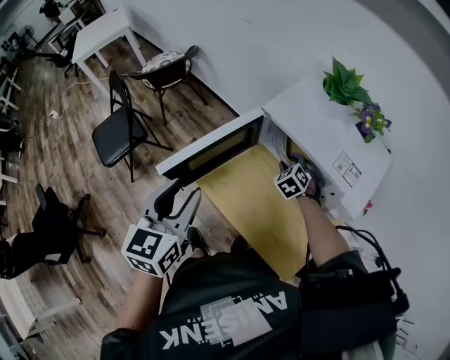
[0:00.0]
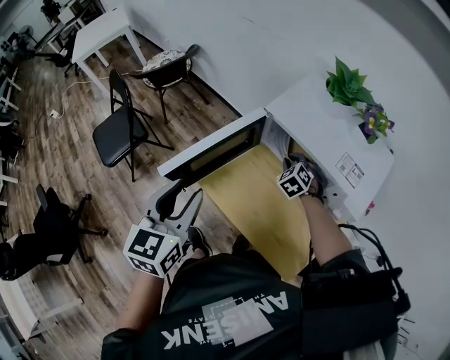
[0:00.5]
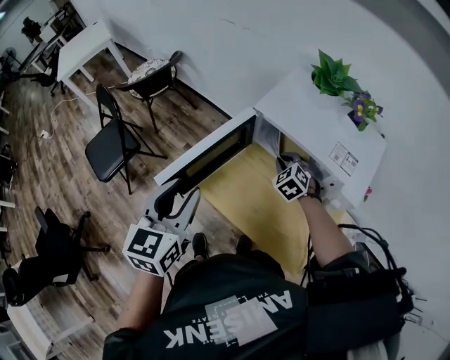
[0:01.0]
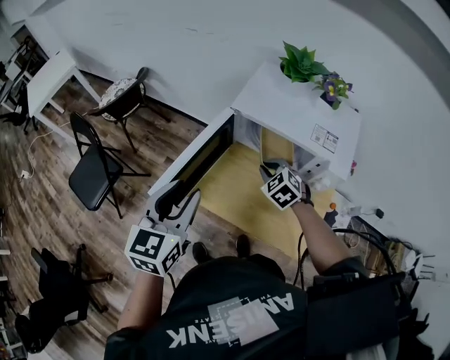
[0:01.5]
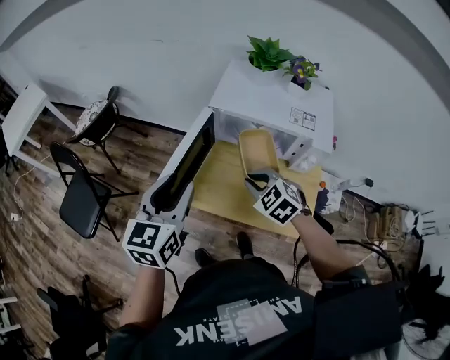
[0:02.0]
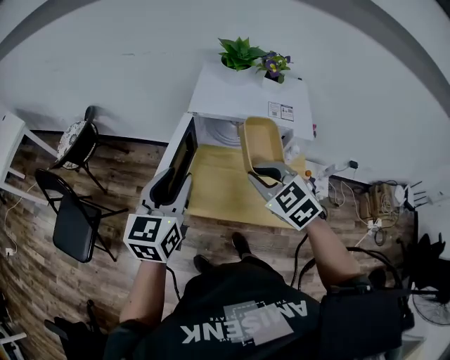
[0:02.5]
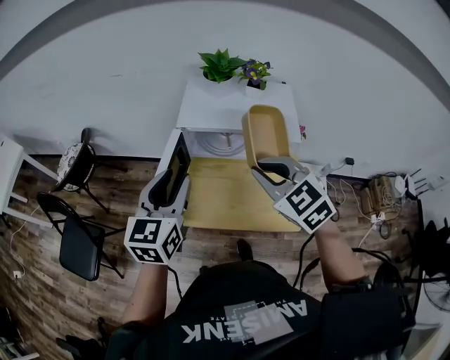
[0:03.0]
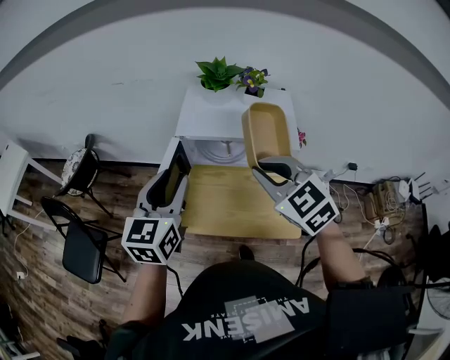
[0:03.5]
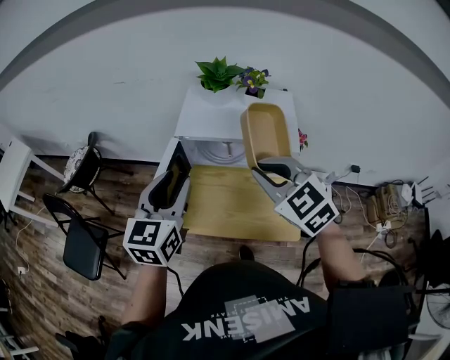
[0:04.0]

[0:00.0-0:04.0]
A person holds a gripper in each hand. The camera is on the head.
0:00.0 to 0:02.0: The right gripper travels backward, upward and to the left by some 25 cm, and closes its fingers. The left gripper swivels roughly 30 degrees.
0:02.0 to 0:04.0: The left gripper shifts roughly 10 cm to the right and upward. The right gripper is displaced upward by approximately 20 cm, and swivels roughly 20 degrees.

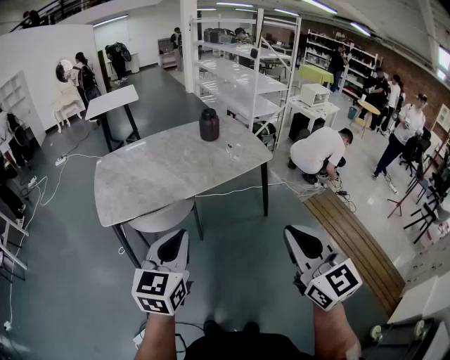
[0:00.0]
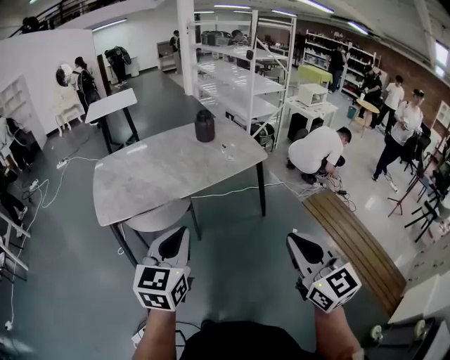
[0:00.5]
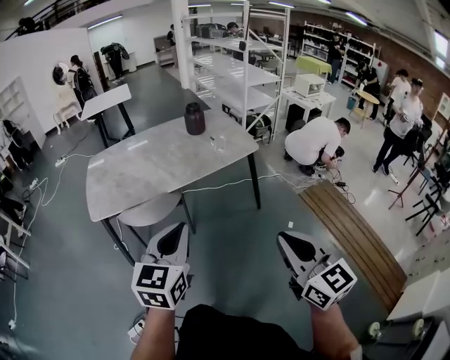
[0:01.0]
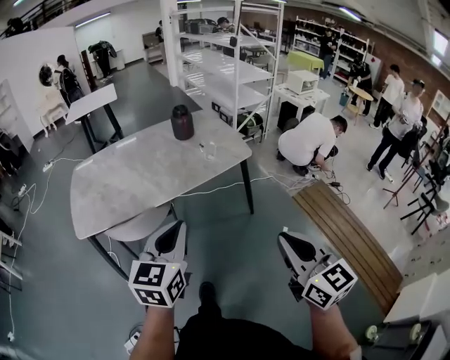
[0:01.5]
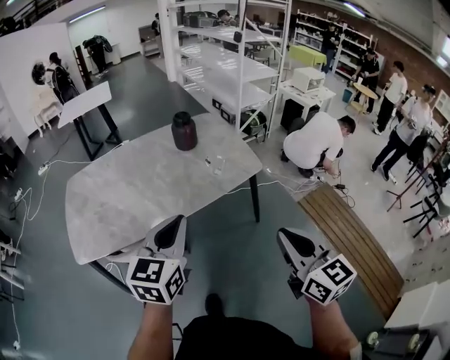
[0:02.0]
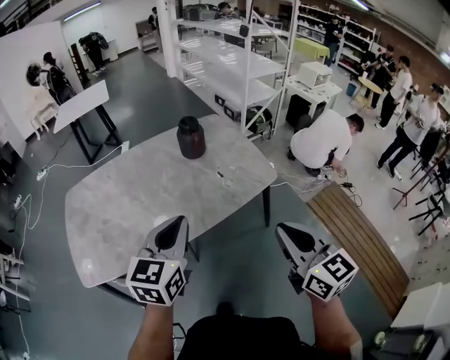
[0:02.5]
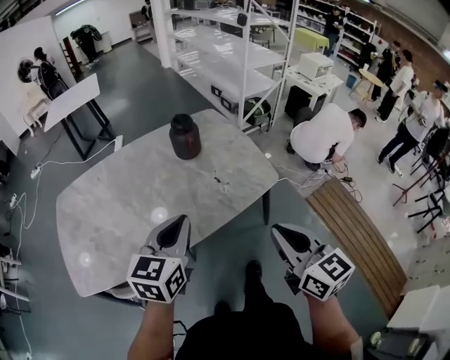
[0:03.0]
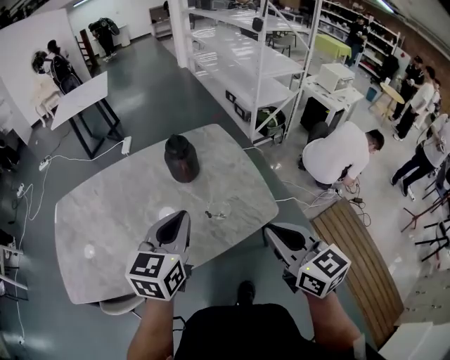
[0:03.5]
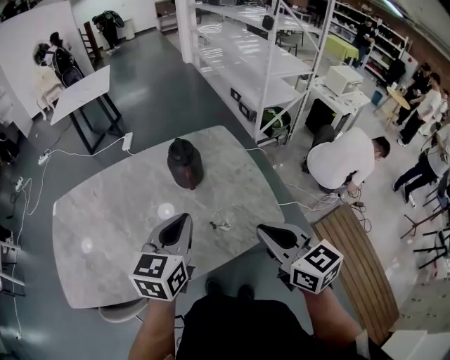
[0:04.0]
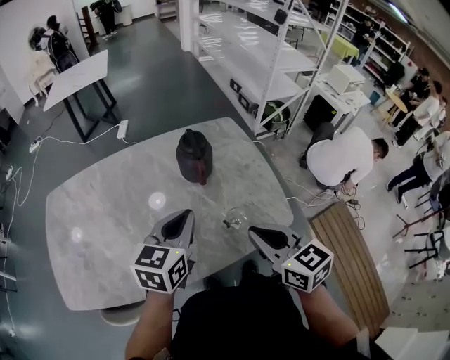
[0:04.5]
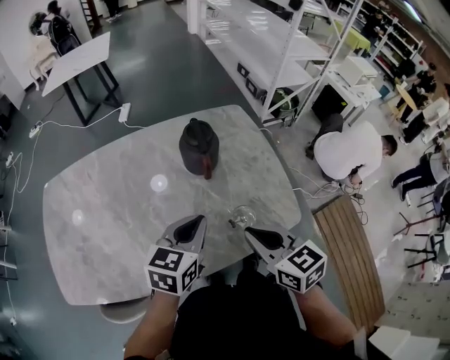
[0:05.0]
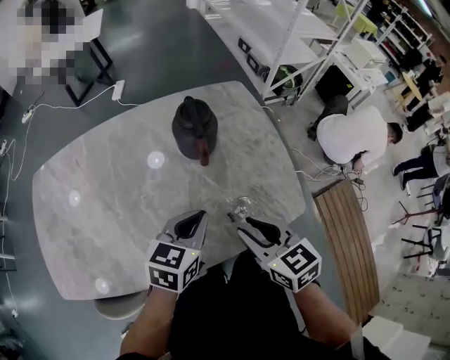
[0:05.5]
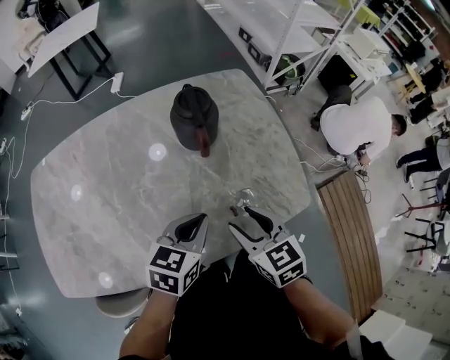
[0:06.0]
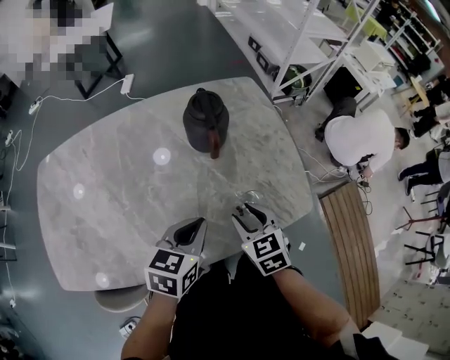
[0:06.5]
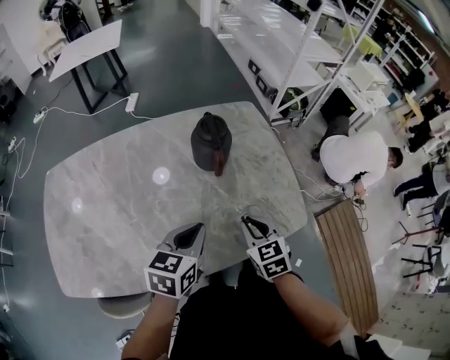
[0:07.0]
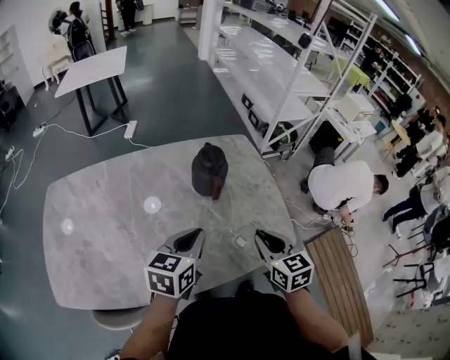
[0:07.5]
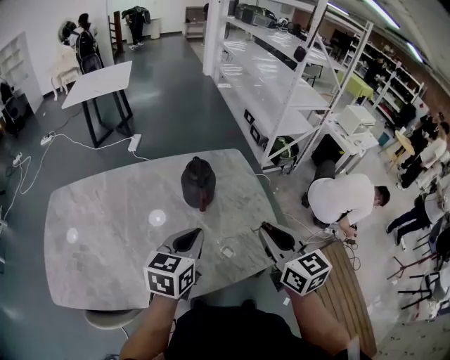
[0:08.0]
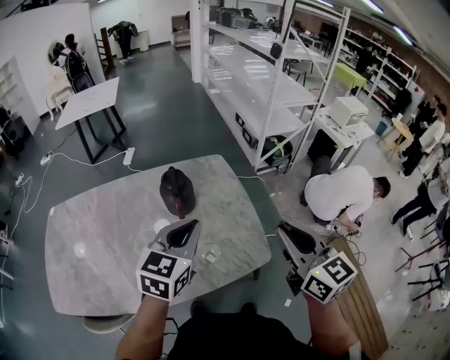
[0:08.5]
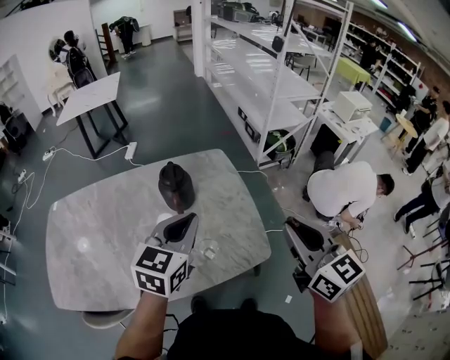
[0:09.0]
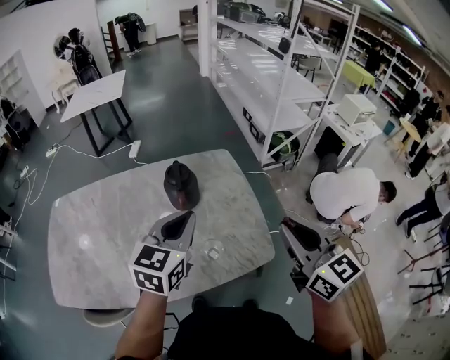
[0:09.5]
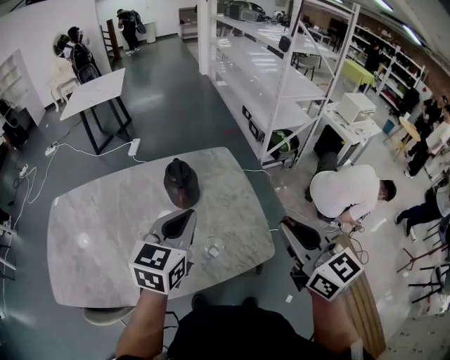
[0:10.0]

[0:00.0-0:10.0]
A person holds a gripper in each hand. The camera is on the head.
0:00.0 to 0:02.0: The grippers both shift forward and to the right by some 25 cm.
0:02.0 to 0:04.0: The two grippers go roughly 35 cm forward.
0:04.0 to 0:06.0: The left gripper travels downward by some 20 cm, and changes its angle by approximately 20 degrees; the right gripper moves downward and to the left, roughly 20 cm, and opens.
0:06.0 to 0:08.0: The right gripper goes approximately 20 cm upward and to the right, rotates about 20 degrees, and closes its fingers; the left gripper is displaced upward by about 10 cm.
0:08.0 to 0:10.0: The right gripper shifts approximately 15 cm to the right and upward. Meanwhile the left gripper goes about 10 cm upward and to the right.

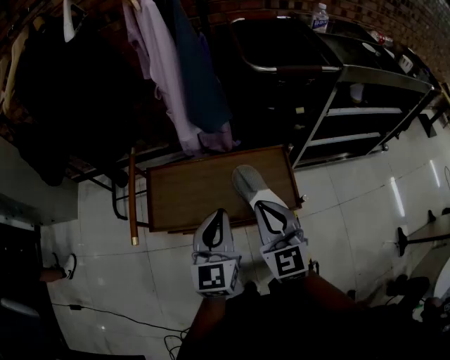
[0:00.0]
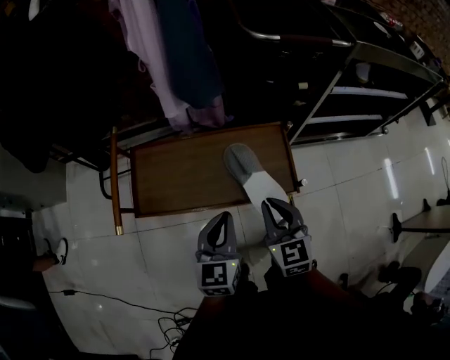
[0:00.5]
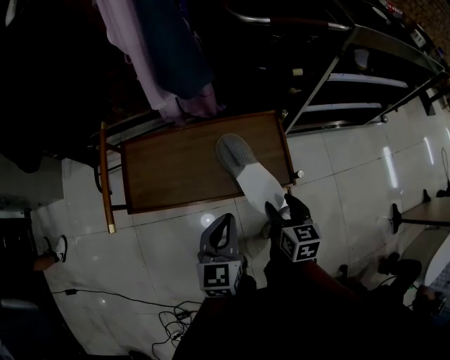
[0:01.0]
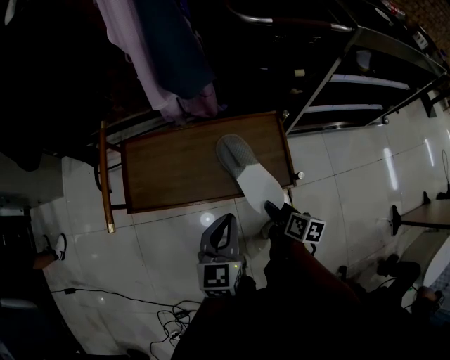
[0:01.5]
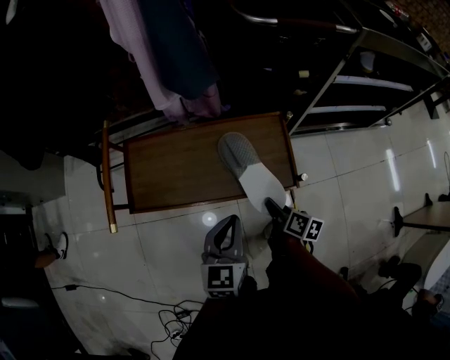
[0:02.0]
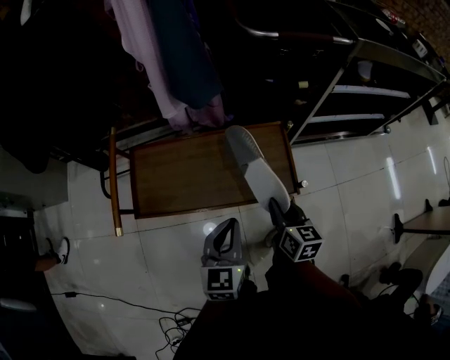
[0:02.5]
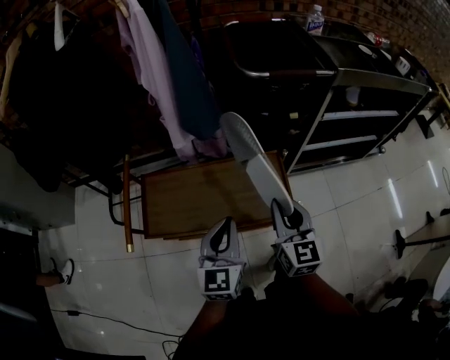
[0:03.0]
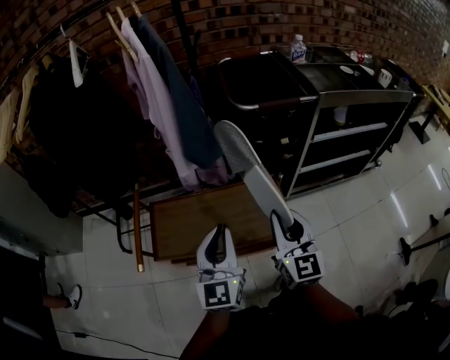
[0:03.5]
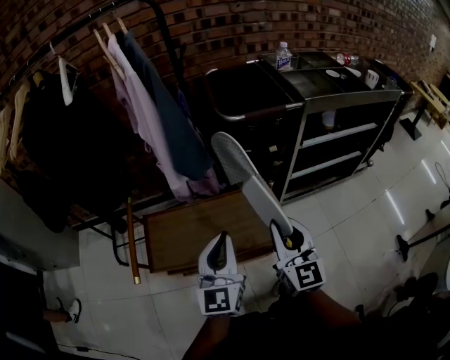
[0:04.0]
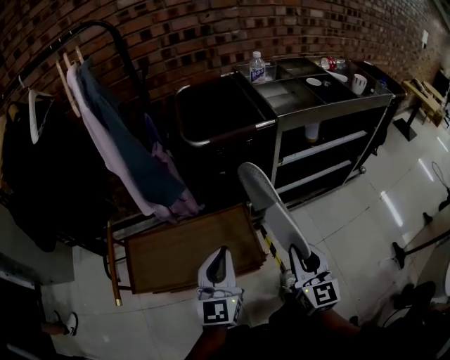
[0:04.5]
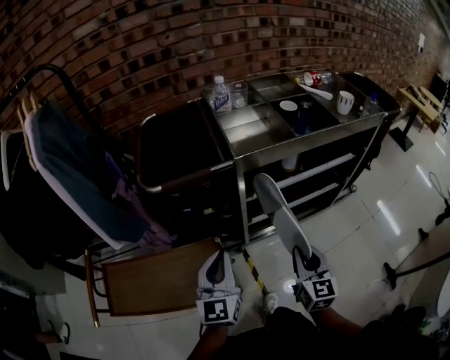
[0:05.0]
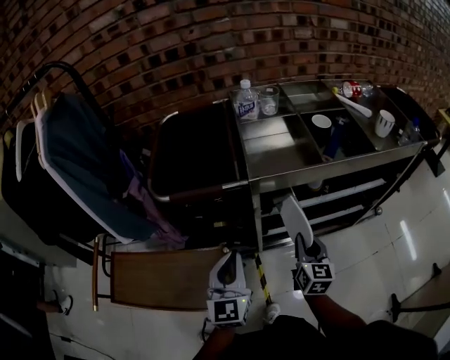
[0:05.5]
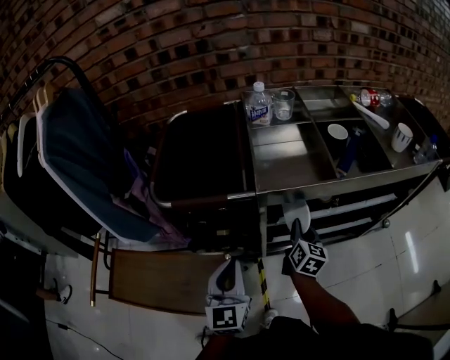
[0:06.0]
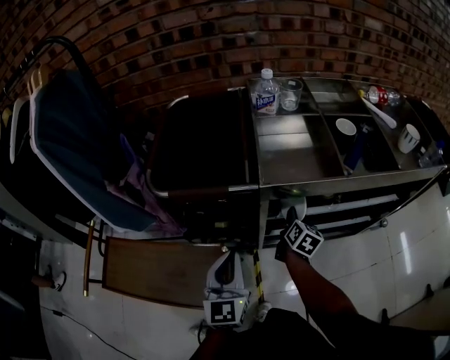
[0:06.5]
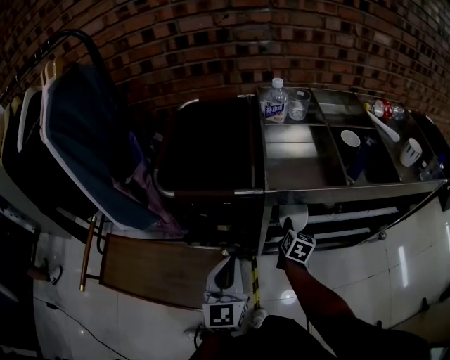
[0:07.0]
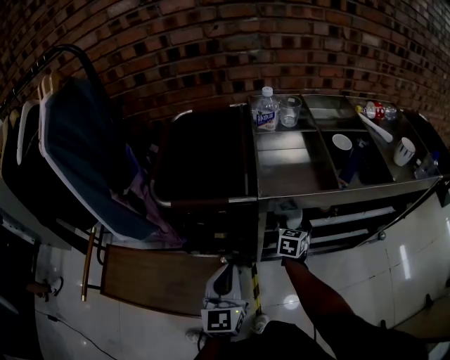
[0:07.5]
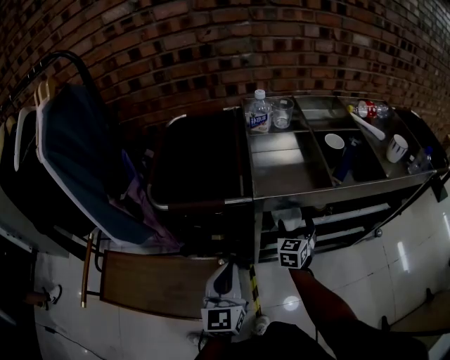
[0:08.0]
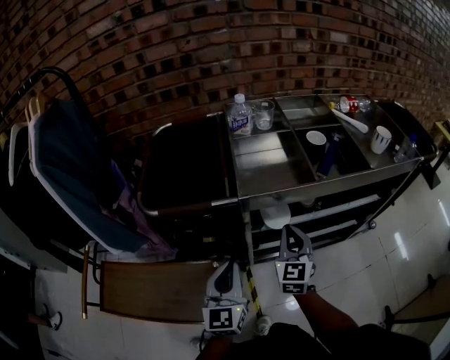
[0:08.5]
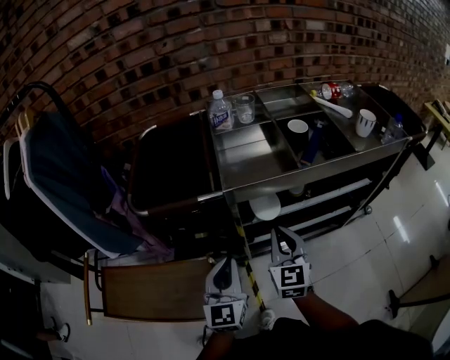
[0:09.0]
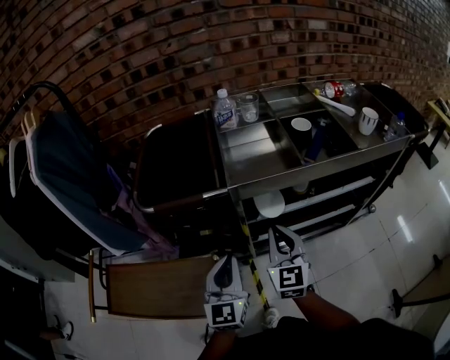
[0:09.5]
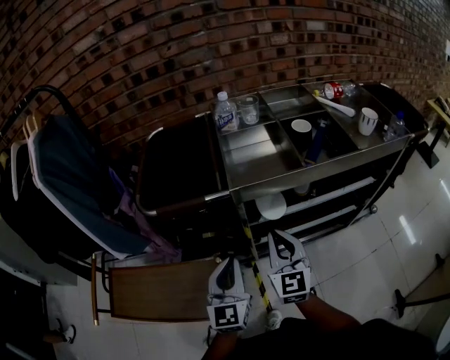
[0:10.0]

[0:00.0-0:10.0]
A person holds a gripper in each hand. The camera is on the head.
0:00.0 to 0:02.0: The left gripper goes some 15 cm downward and to the right, while the right gripper is displaced downward by some 30 cm, rotates around the line of its fingers by approximately 70 degrees, clockwise from behind, and opens, then closes again.
0:02.0 to 0:04.0: The right gripper heads upward, covering about 35 cm, and angles its fingers upward, by some 40 degrees; the left gripper shifts some 20 cm upward, and changes its angle by roughly 30 degrees.
0:04.0 to 0:06.0: The right gripper moves forward, to the right and downward, about 50 cm, and changes its angle by roughly 30 degrees, while the left gripper goes roughly 35 cm to the right and forward.
0:06.0 to 0:08.0: The right gripper changes its angle by some 40 degrees, and opens.
0:08.0 to 0:10.0: The right gripper heads backward and upward, covering some 20 cm, rotates about 30 degrees, and closes.

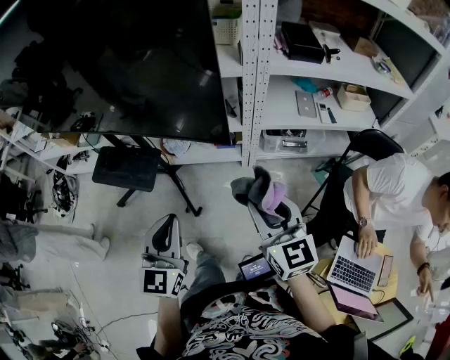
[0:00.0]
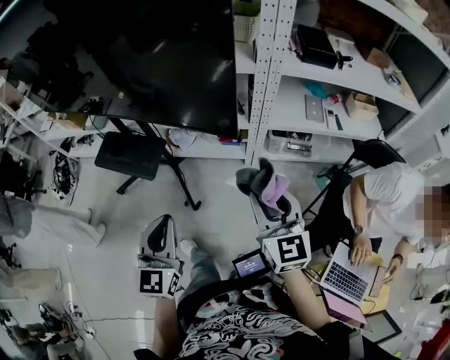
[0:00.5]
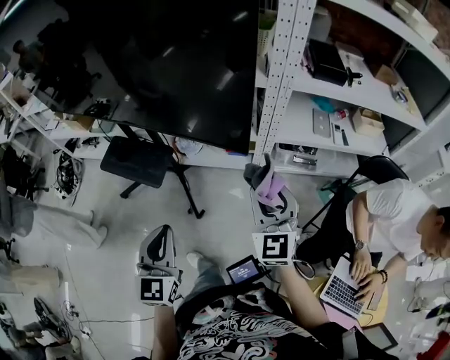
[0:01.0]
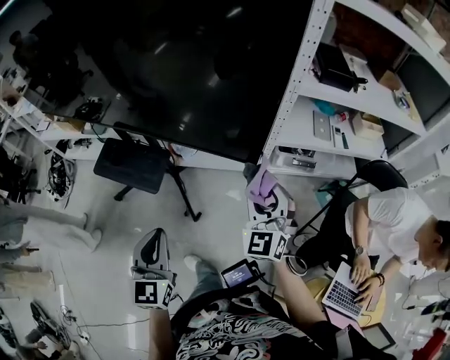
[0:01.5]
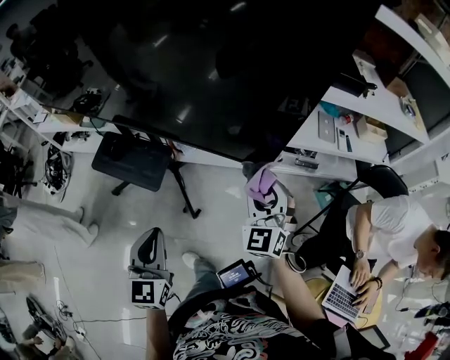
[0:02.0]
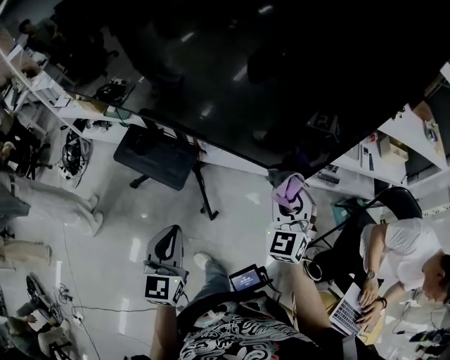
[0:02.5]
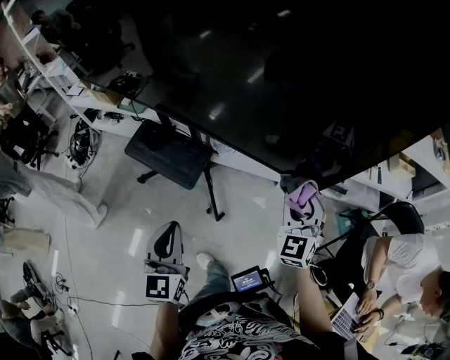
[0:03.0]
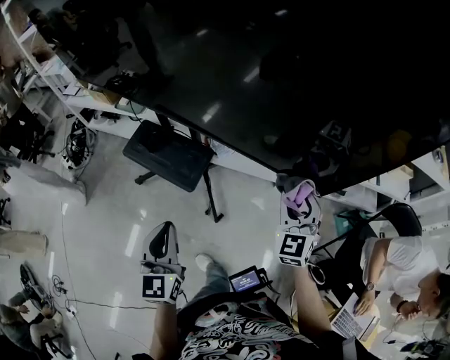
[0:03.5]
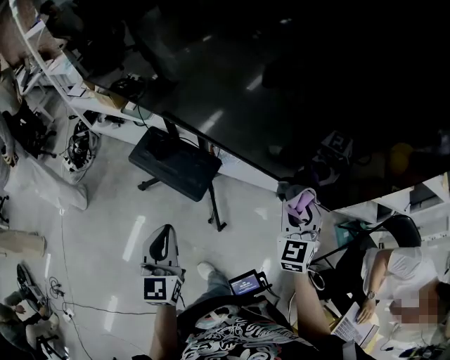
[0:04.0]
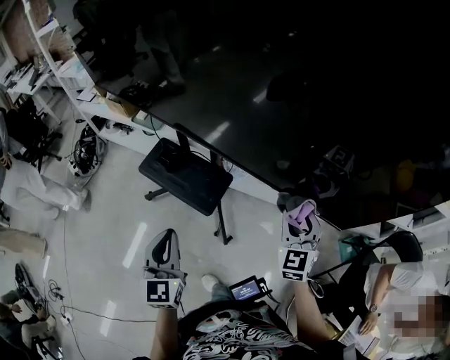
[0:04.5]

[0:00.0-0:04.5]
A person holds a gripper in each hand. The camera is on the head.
0:00.0 to 0:02.0: The left gripper travels to the left by some 15 cm. Meanwhile the right gripper travels forward and to the left by some 20 cm, and rotates approximately 40 degrees.
0:02.0 to 0:04.5: The left gripper heads to the left, covering roughly 20 cm; the right gripper shifts approximately 15 cm to the left and forward.
